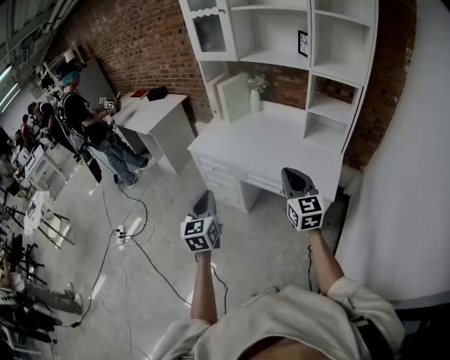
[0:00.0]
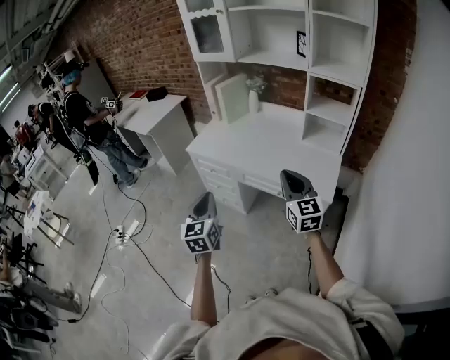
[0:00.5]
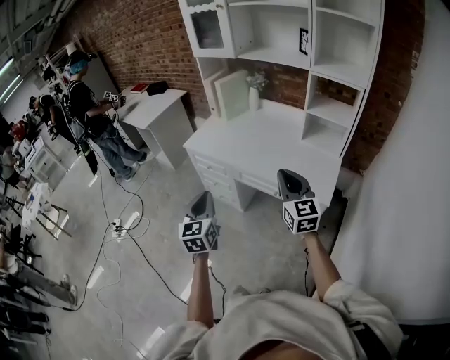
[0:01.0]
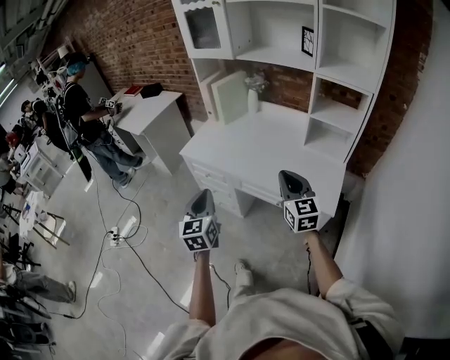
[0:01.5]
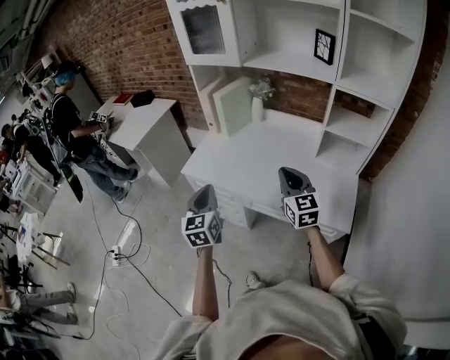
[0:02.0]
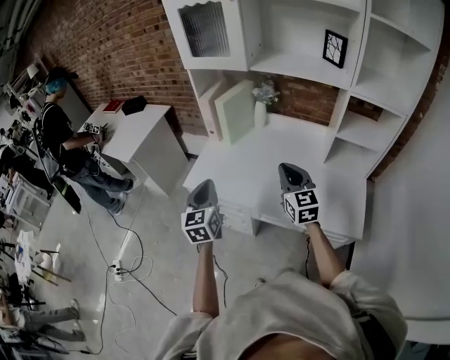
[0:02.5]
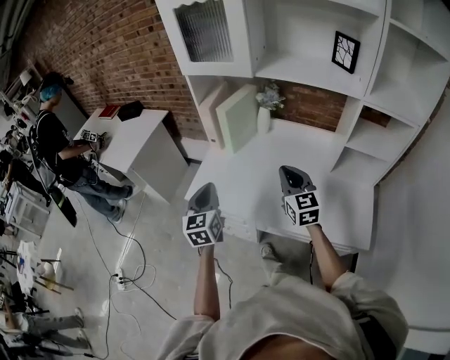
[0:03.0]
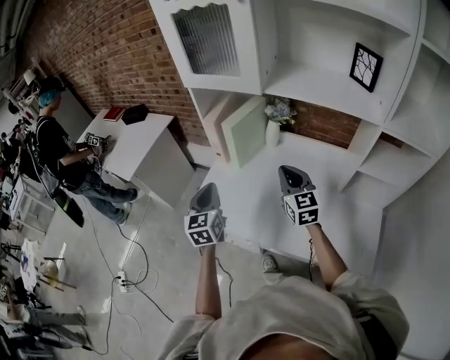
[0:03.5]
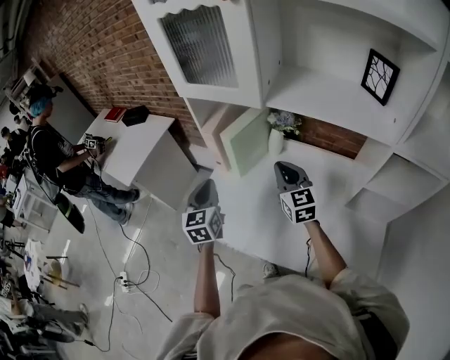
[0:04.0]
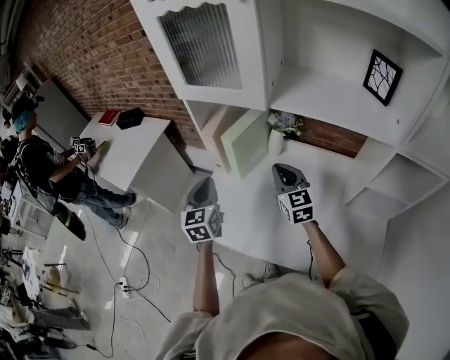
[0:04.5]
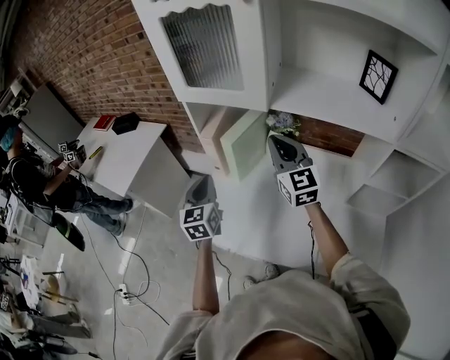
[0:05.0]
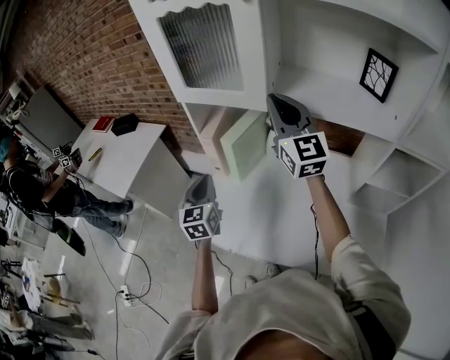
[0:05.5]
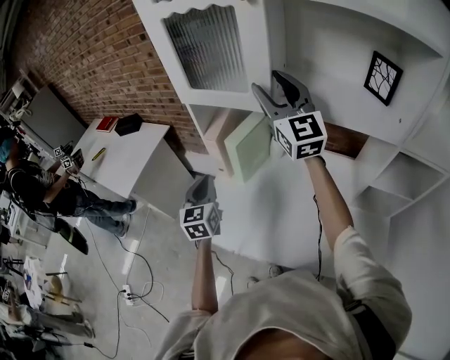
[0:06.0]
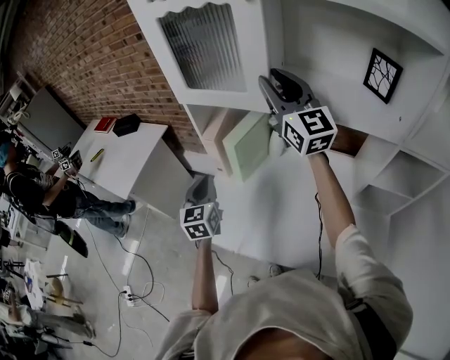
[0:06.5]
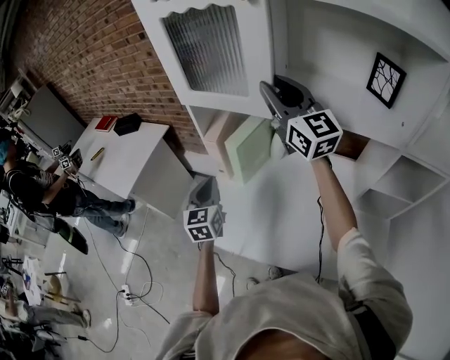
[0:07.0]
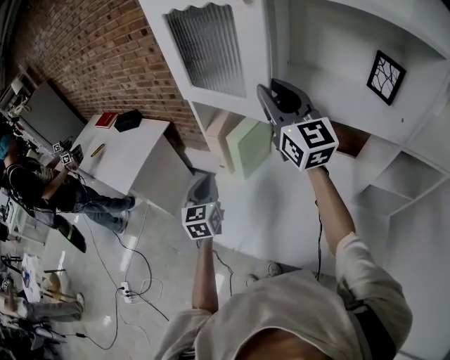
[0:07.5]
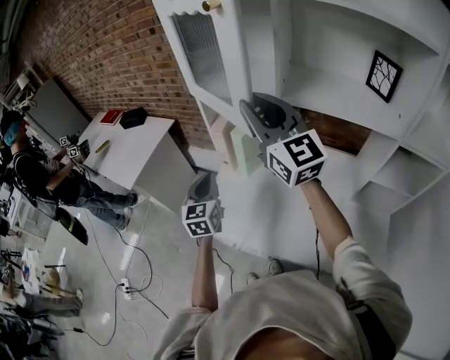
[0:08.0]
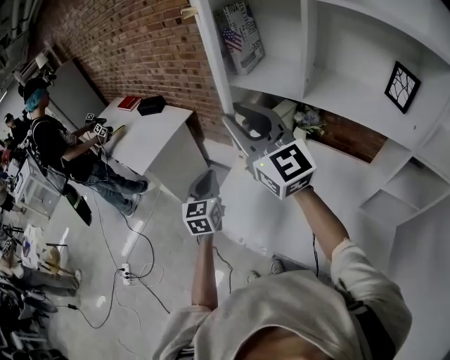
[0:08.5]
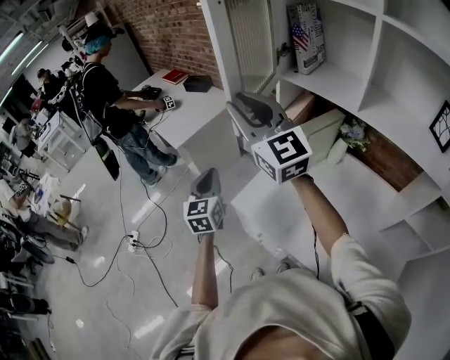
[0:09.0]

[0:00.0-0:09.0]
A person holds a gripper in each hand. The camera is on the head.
0:00.0 to 0:02.0: Both grippers travel together forward, about 25 cm.
0:02.0 to 0:04.5: Both grippers move forward, about 40 cm.
0:04.5 to 0:07.0: The right gripper travels upward by about 25 cm, turns by some 30 degrees, and opens up.
0:07.0 to 0:09.0: The left gripper moves some 20 cm, and rotates approximately 20 degrees; the right gripper changes place by roughly 30 cm, and changes its angle by some 30 degrees.

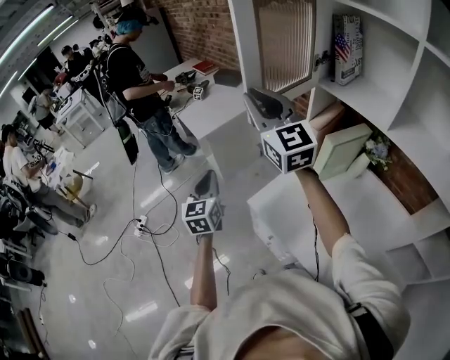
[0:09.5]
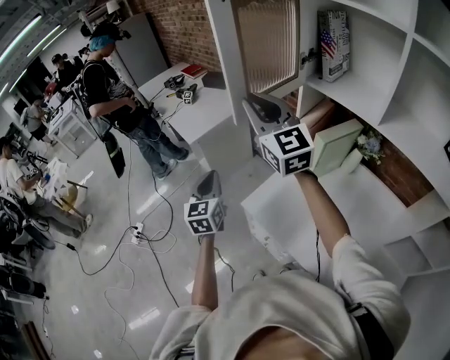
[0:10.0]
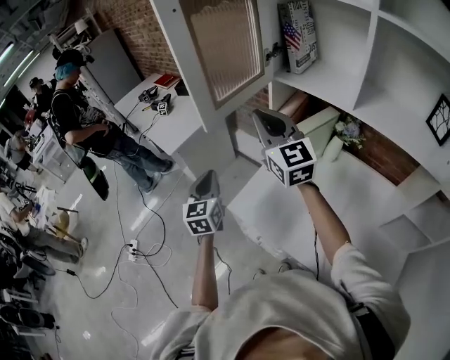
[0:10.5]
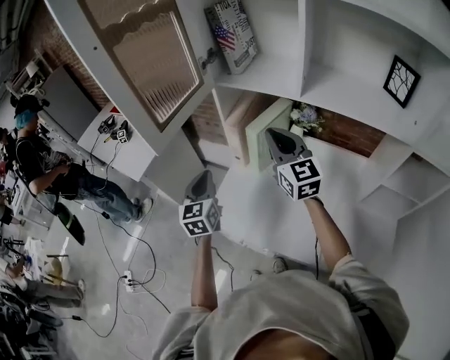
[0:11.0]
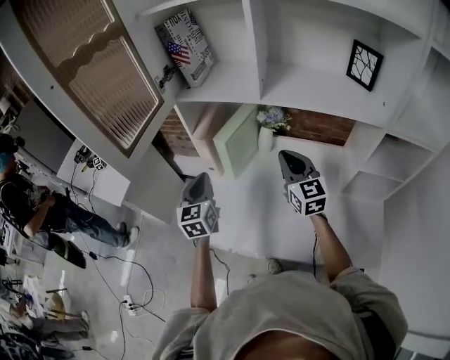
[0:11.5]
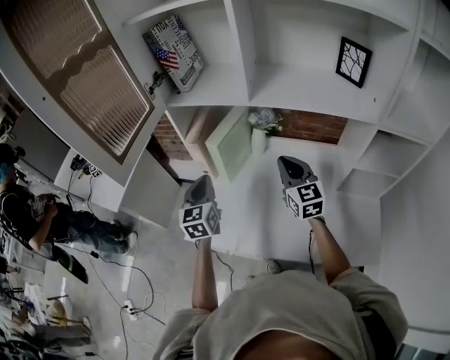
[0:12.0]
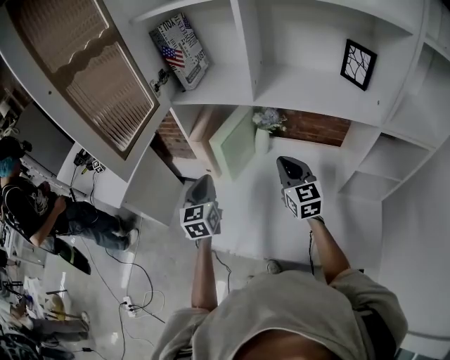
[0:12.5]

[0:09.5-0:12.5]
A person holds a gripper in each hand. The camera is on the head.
0:09.5 to 0:11.0: The right gripper shifts by approximately 30 cm, and turns by approximately 30 degrees, while the left gripper moves approximately 20 cm, and changes its angle by roughly 30 degrees.
0:11.0 to 0:12.5: The right gripper travels to the right and downward by about 15 cm; the left gripper heads to the right, covering approximately 10 cm.

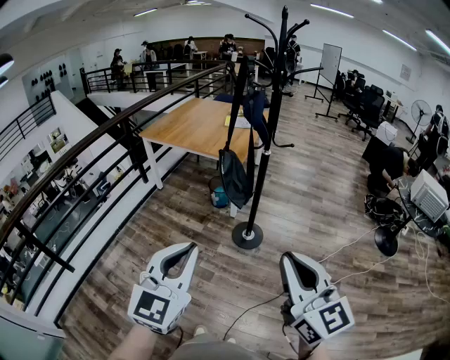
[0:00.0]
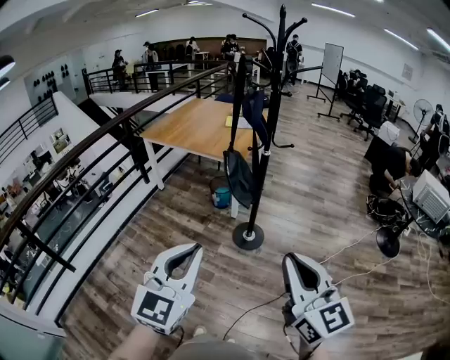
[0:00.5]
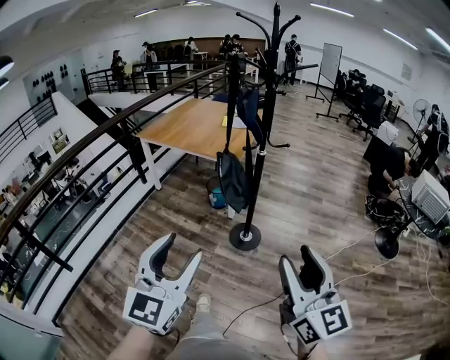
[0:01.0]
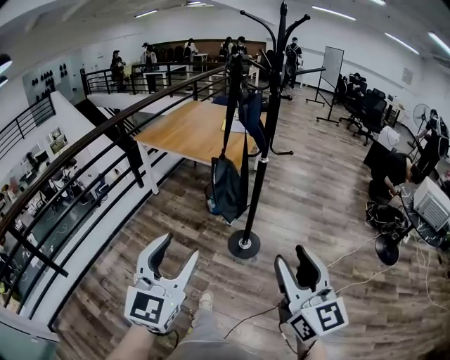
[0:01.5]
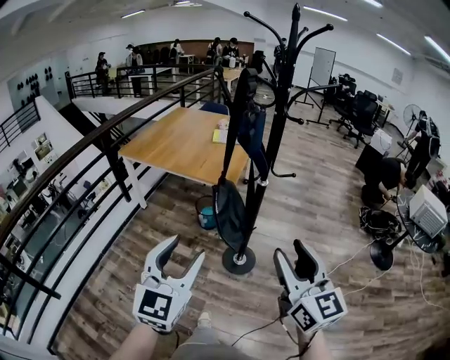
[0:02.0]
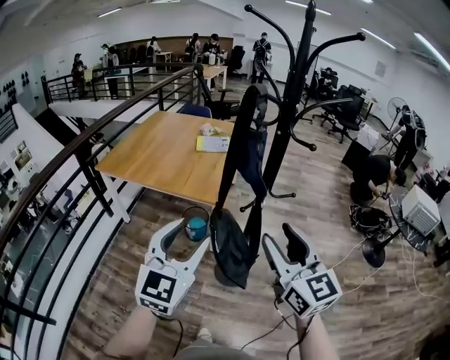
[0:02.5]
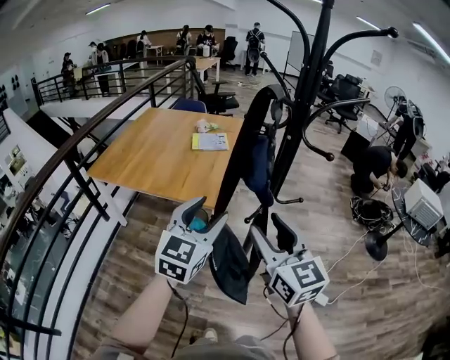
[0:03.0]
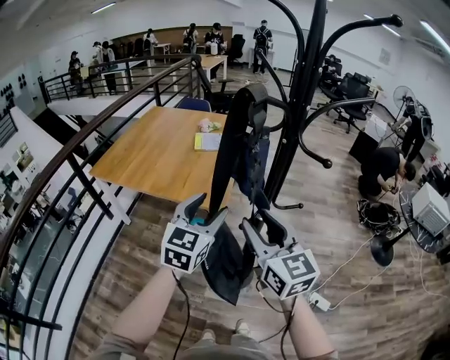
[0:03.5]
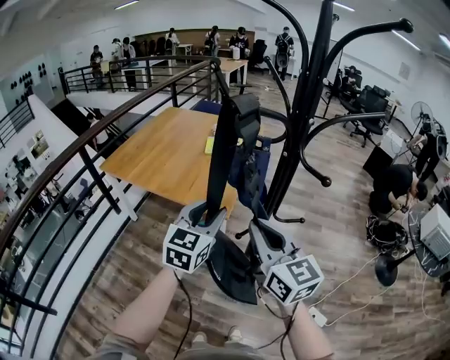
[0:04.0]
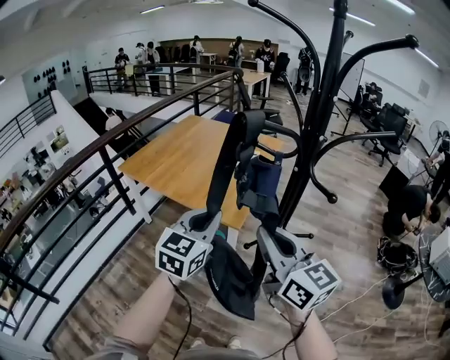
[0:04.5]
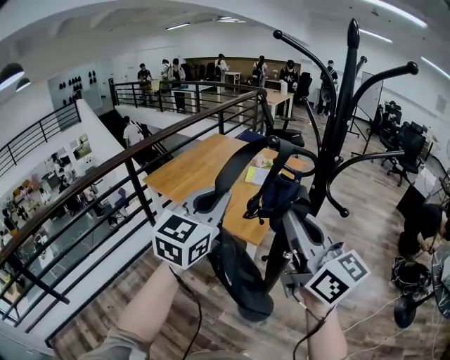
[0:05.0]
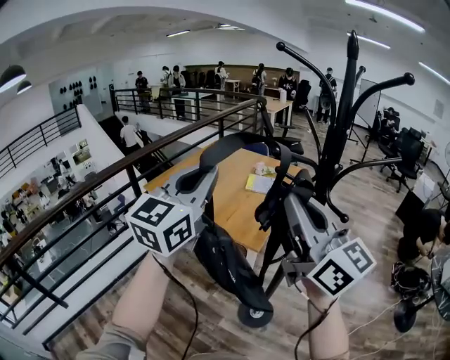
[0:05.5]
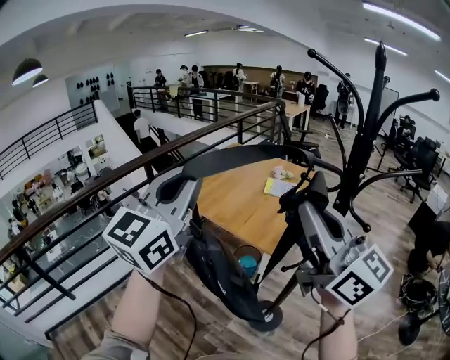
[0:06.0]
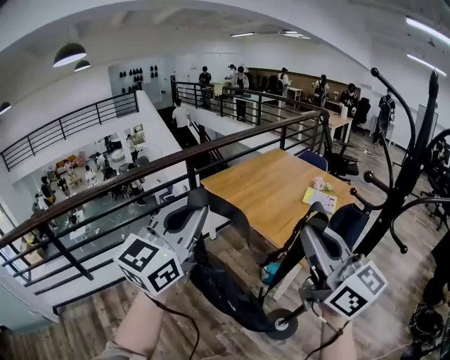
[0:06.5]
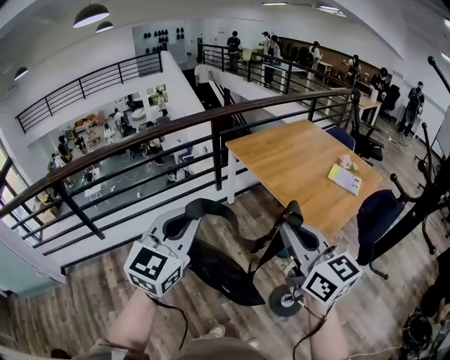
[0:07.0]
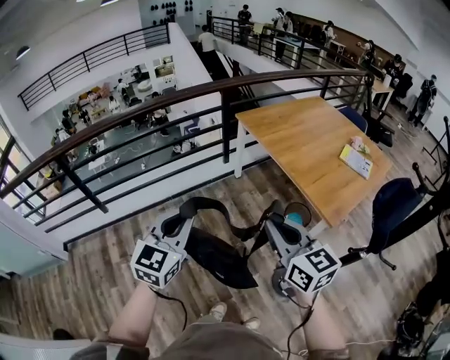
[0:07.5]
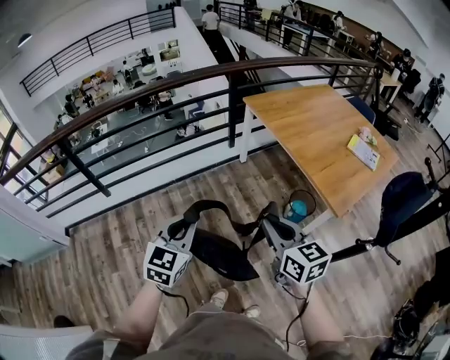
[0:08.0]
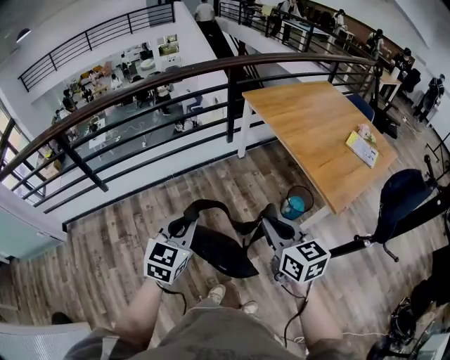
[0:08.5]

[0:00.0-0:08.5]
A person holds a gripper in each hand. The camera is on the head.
0:00.0 to 0:02.0: The two grippers go approximately 20 cm forward. The right gripper opens up, while the left gripper opens.
0:02.0 to 0:04.0: Both grippers move forward, some 35 cm. The right gripper closes its fingers.
0:04.0 to 0:06.5: The left gripper ends up about 35 cm from where it was, changes its angle by some 30 degrees, and closes its fingers; the right gripper is displaced upward by approximately 15 cm, and turns by about 40 degrees.
0:06.5 to 0:08.5: The grippers both shift downward and to the left by approximately 35 cm. The right gripper tilts its fingers some 30 degrees downward, while the left gripper tilts its fingers roughly 30 degrees downward.

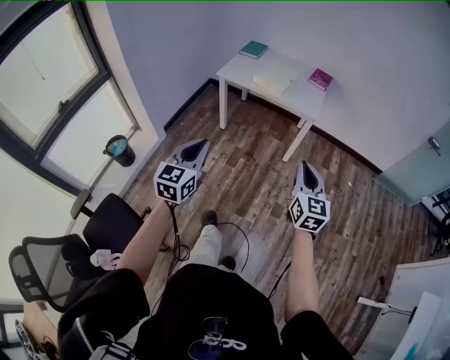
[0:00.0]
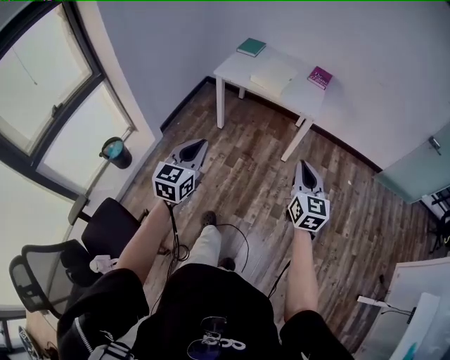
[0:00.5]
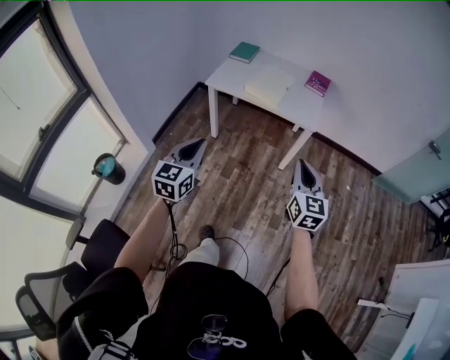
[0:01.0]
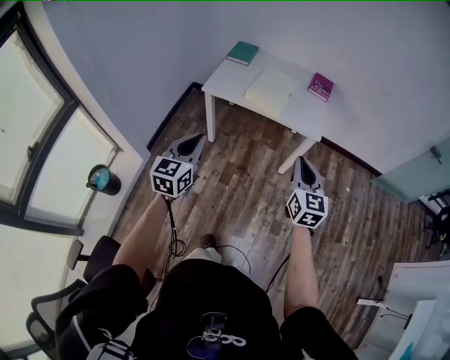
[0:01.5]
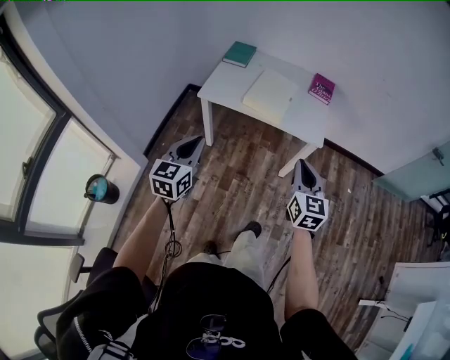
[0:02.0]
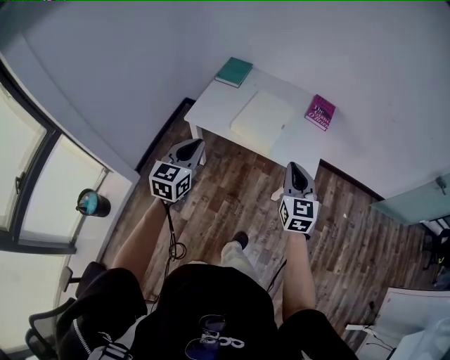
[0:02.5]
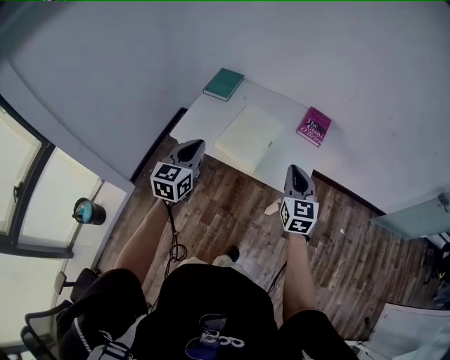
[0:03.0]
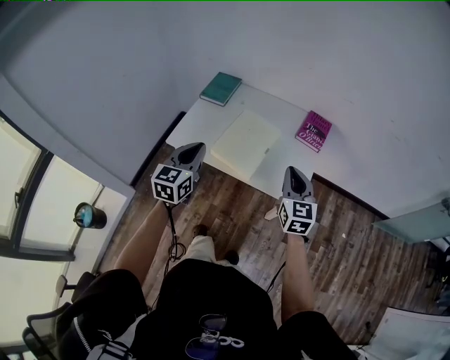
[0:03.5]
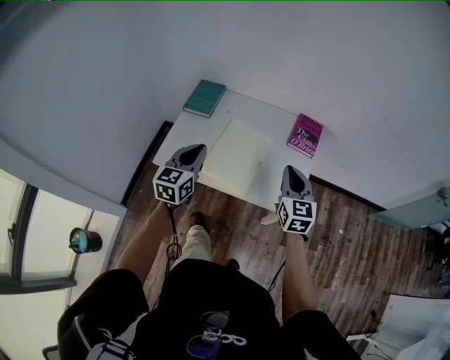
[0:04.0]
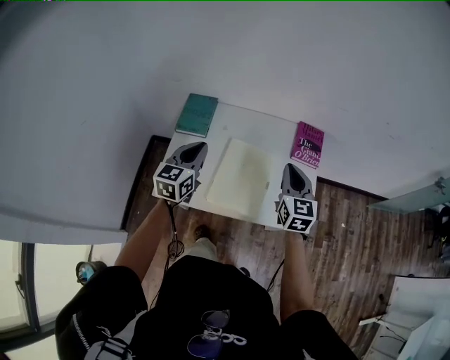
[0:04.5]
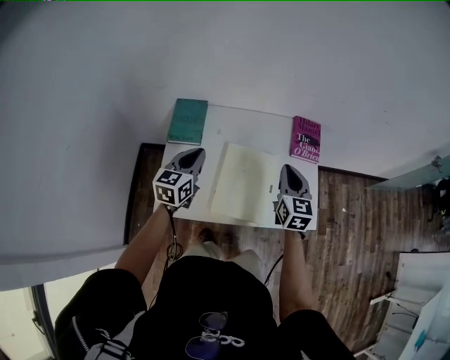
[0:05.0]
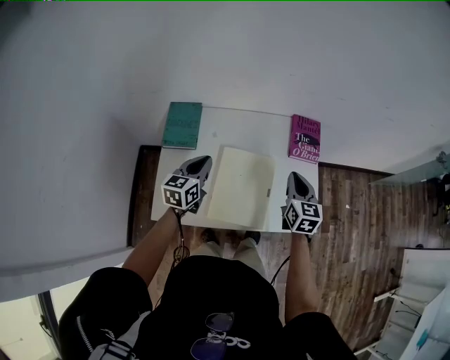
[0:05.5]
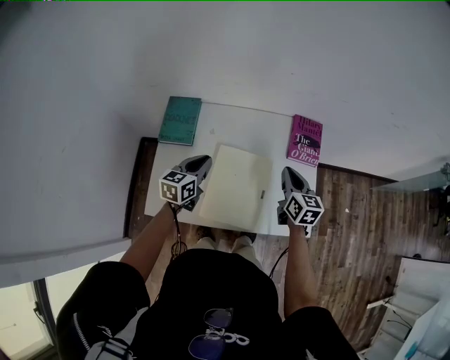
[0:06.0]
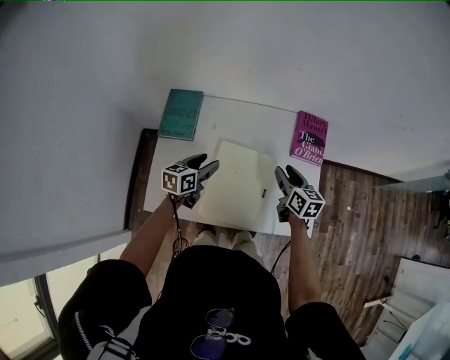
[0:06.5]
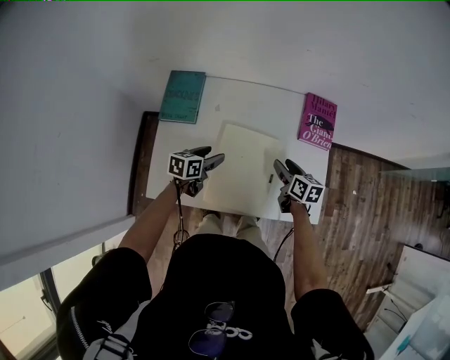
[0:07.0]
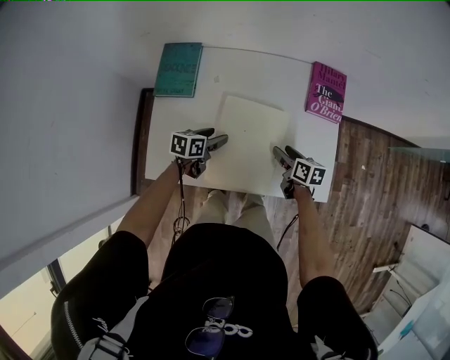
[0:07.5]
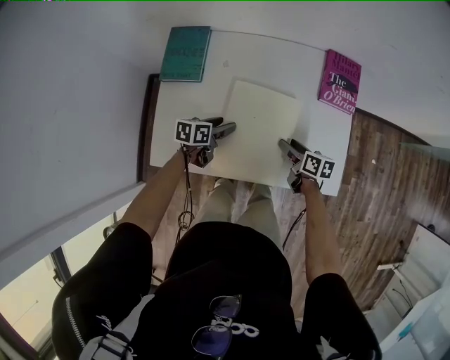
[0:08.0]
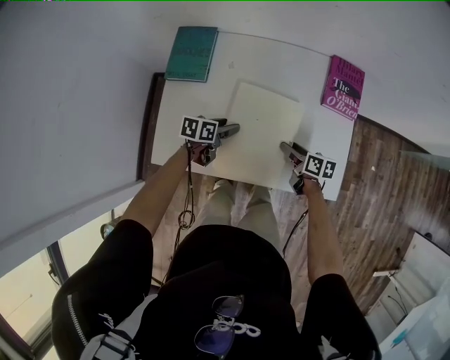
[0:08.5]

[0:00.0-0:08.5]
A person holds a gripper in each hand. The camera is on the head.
0:00.0 to 0:02.0: The two grippers go some 35 cm forward.
0:02.0 to 0:04.0: The two grippers travel together, forward, some 40 cm.
0:04.0 to 0:06.5: The grippers both shift forward and downward by some 30 cm. The left gripper changes its angle by approximately 40 degrees, and opens its fingers, while the right gripper swivels about 30 degrees, and opens.
0:06.5 to 0:08.5: The right gripper is displaced downward and backward by roughly 20 cm, and turns by about 30 degrees; the left gripper goes some 15 cm downward, and changes its angle by some 20 degrees.
